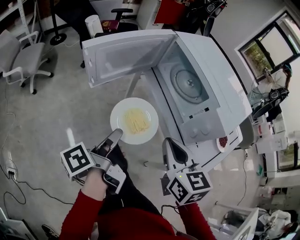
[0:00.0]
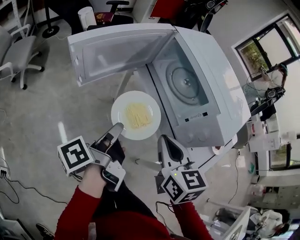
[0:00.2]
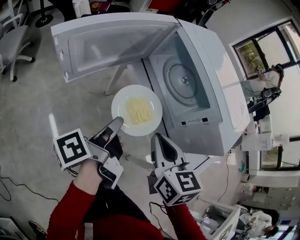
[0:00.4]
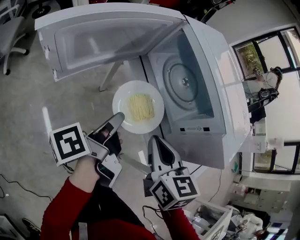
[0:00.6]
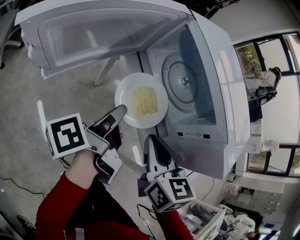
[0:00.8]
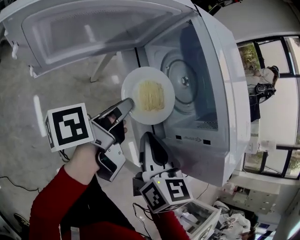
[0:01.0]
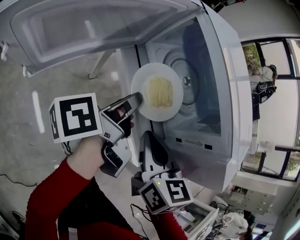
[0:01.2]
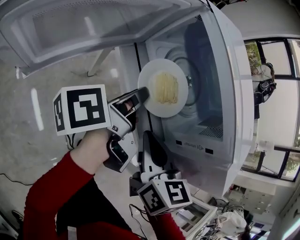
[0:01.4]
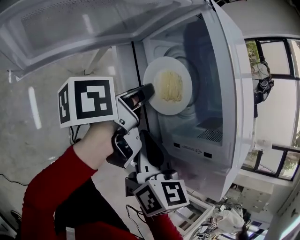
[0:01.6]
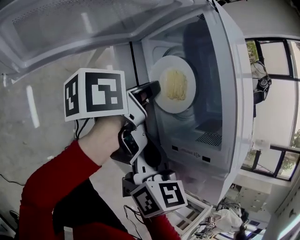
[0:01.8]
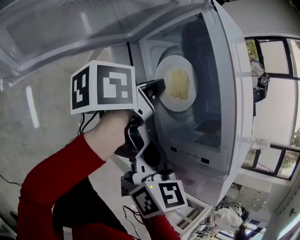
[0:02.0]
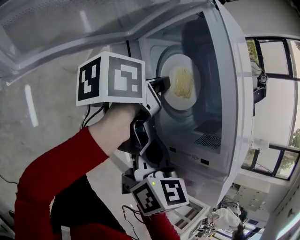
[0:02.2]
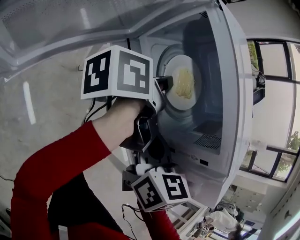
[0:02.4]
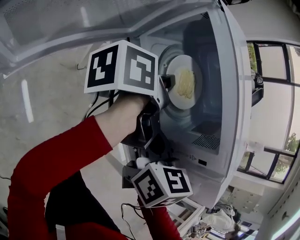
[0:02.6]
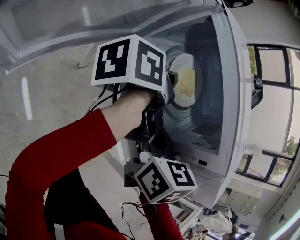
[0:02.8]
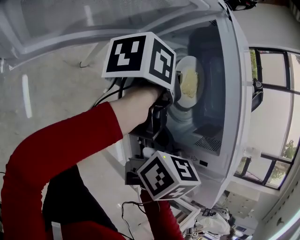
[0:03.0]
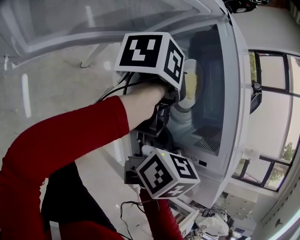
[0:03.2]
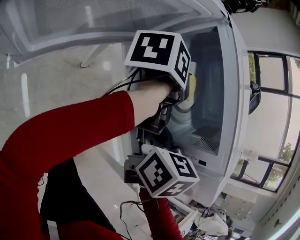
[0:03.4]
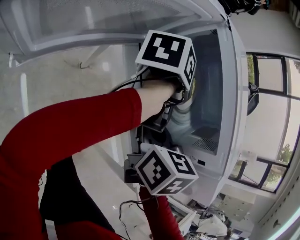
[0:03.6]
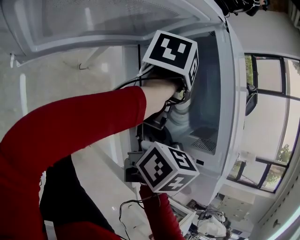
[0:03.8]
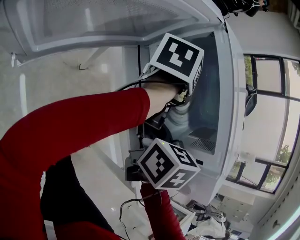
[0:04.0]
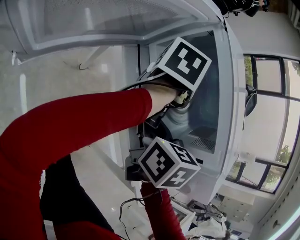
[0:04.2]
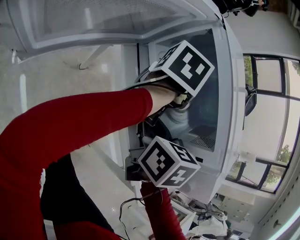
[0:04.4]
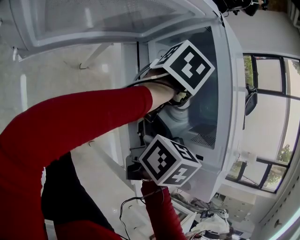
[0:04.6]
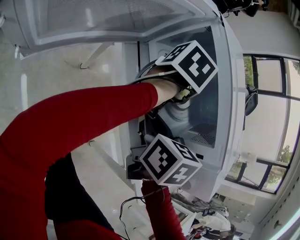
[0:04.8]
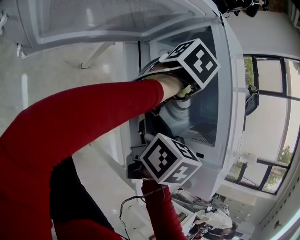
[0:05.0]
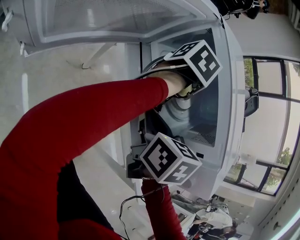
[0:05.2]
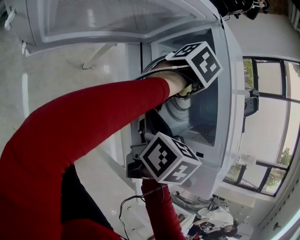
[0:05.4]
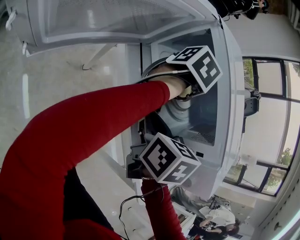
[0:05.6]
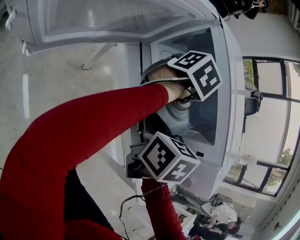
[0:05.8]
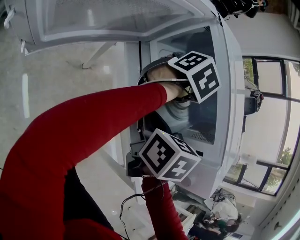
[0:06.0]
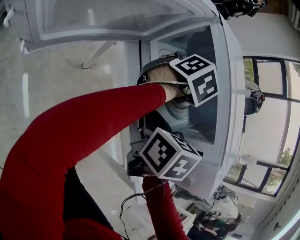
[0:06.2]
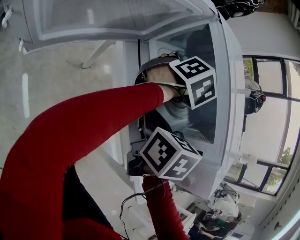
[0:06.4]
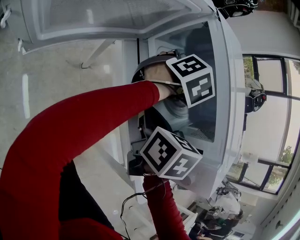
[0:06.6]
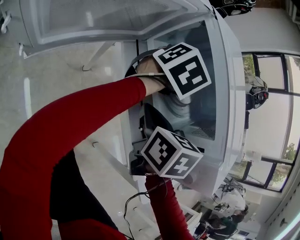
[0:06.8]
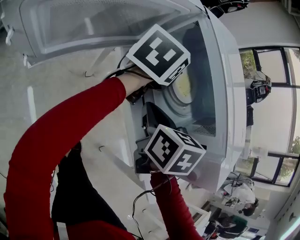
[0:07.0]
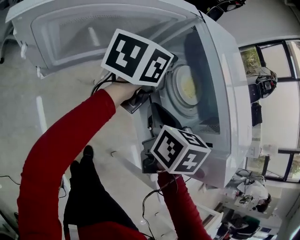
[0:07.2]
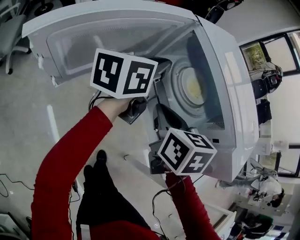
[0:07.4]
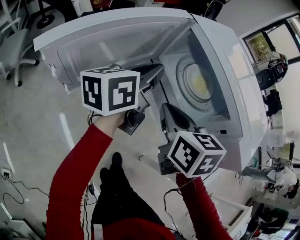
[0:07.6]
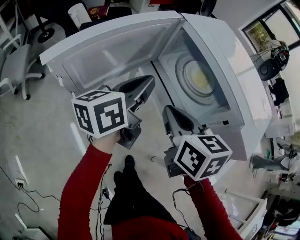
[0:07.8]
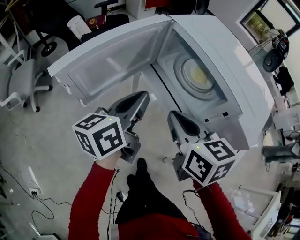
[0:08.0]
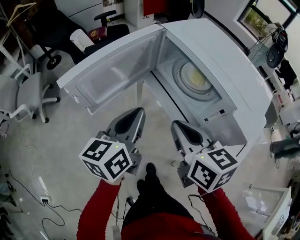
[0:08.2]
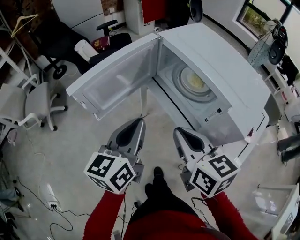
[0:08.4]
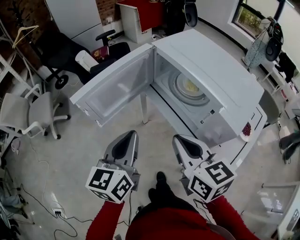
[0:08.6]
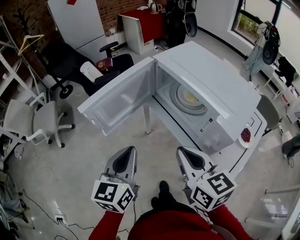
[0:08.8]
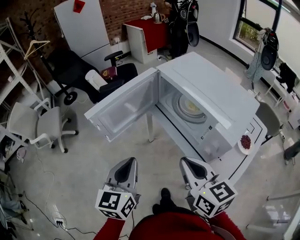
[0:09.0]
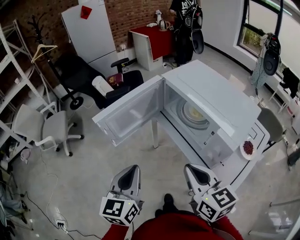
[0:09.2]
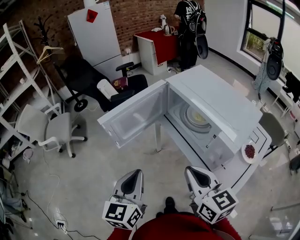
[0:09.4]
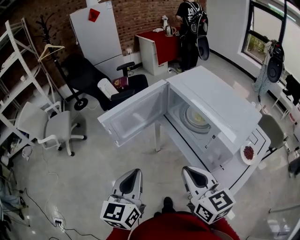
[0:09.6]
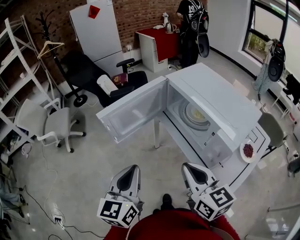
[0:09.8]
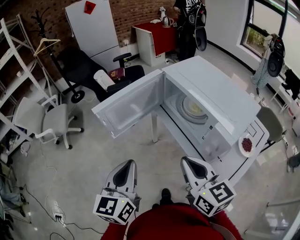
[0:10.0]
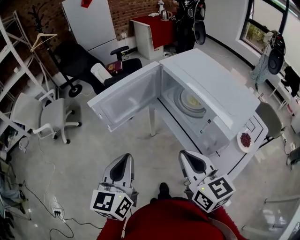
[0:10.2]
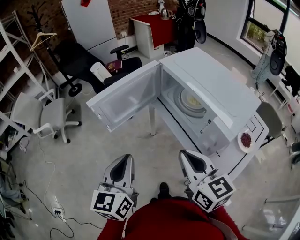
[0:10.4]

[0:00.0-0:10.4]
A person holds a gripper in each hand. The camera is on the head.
0:00.0 to 0:01.4: The left gripper heads forward and to the right, covering approximately 20 cm. Meanwhile the right gripper heads forward and downward, covering some 10 cm.
0:01.4 to 0:03.0: The right gripper changes place by about 5 cm. The left gripper travels forward by approximately 10 cm.
0:03.0 to 0:04.4: The left gripper rotates roughly 40 degrees.
0:04.4 to 0:06.0: The left gripper swivels some 30 degrees.
0:06.0 to 0:07.4: The right gripper shifts by roughly 5 cm. Meanwhile the left gripper goes approximately 15 cm to the left, backward and upward, tips its fingers upward by roughly 30 degrees, and closes its fingers.
0:07.4 to 0:09.0: The left gripper moves backward, about 25 cm, and changes its angle by about 40 degrees, while the right gripper travels backward and upward by roughly 20 cm, and turns by about 30 degrees.
0:09.0 to 0:10.4: There are only small adjustments of the grippers.

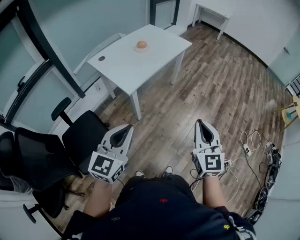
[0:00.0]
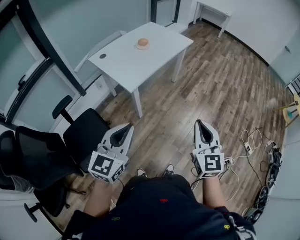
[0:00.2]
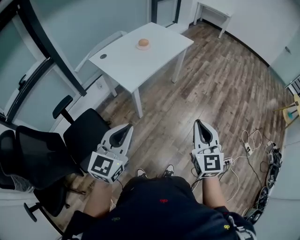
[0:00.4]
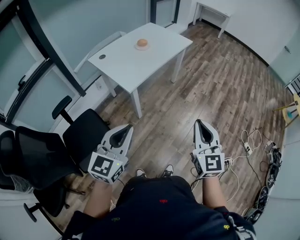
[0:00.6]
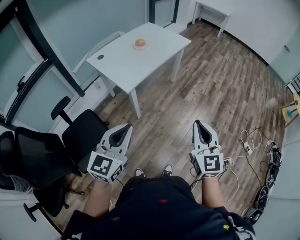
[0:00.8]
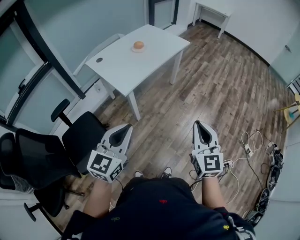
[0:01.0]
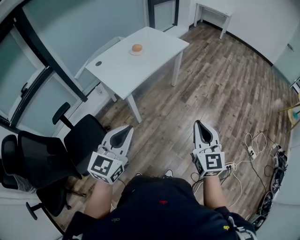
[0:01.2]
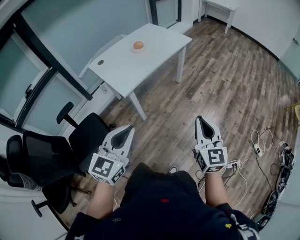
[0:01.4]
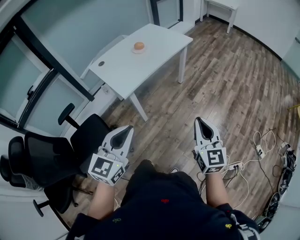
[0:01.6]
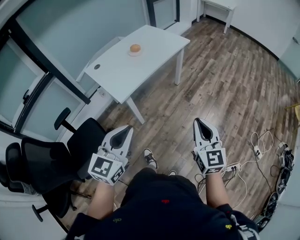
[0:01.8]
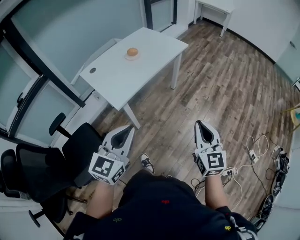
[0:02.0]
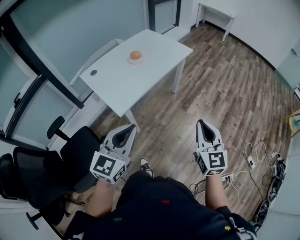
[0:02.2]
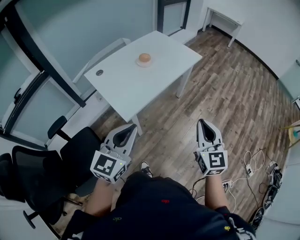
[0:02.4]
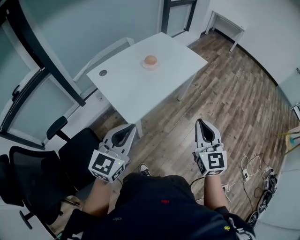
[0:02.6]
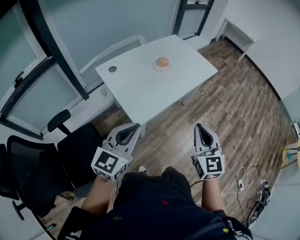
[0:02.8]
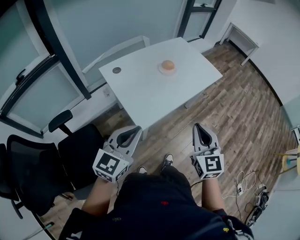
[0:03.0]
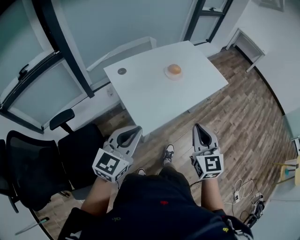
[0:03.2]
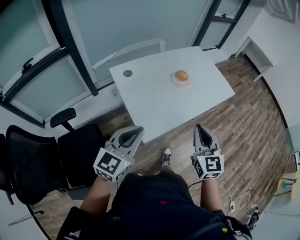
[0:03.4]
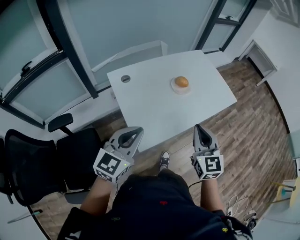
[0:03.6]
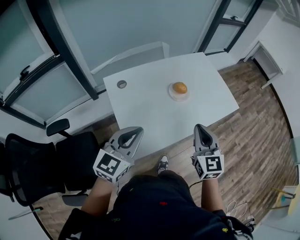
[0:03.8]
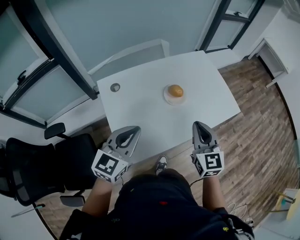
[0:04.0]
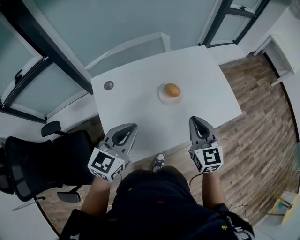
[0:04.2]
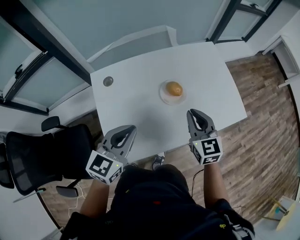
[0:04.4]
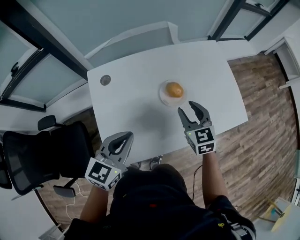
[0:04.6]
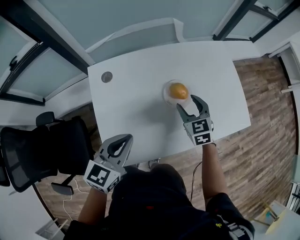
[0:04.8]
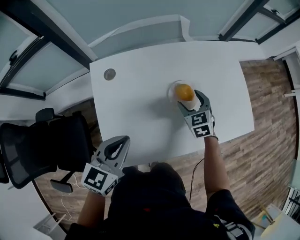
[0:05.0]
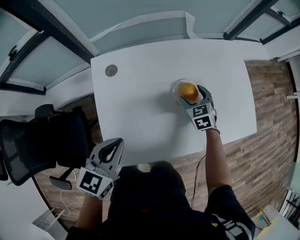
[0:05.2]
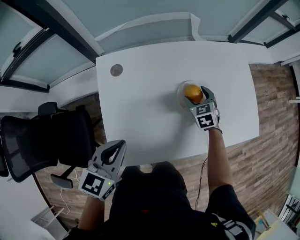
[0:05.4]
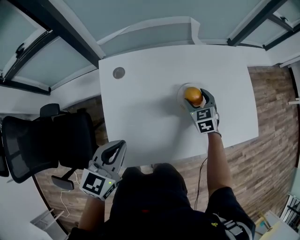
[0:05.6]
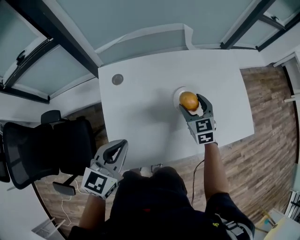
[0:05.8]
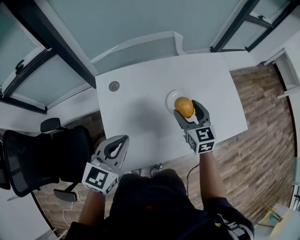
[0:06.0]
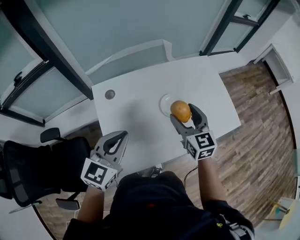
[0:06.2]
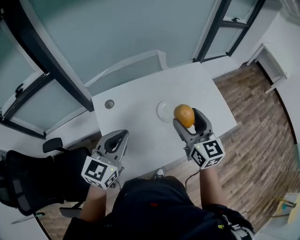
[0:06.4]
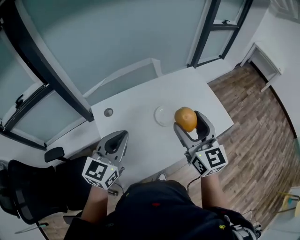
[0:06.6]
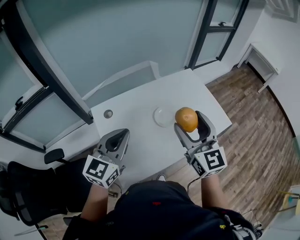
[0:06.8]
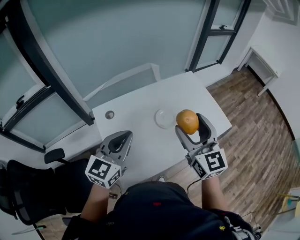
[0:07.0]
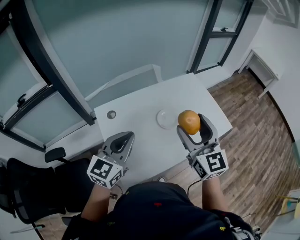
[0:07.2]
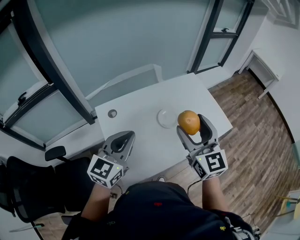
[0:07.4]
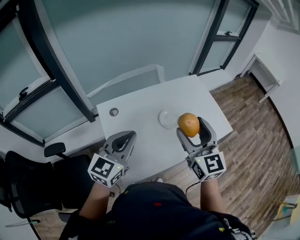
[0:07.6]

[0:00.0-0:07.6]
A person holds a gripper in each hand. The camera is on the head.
0:00.0 to 0:01.6: The two grippers go about 15 cm to the right and forward.
0:01.6 to 0:03.0: The left gripper goes roughly 35 cm forward and to the left. Meanwhile the right gripper travels to the left and forward by some 40 cm.
0:03.0 to 0:04.6: The grippers both shift forward by approximately 50 cm. The left gripper changes its angle by approximately 30 degrees. The right gripper swivels some 30 degrees, and opens its fingers.
0:04.6 to 0:06.0: Both grippers travel together to the left, approximately 5 cm. The right gripper reaches some 15 cm downward, then returns, and opens up.
0:06.0 to 0:07.6: The right gripper travels upward and backward by approximately 25 cm, and turns by about 20 degrees. Meanwhile the left gripper is displaced upward by some 10 cm.

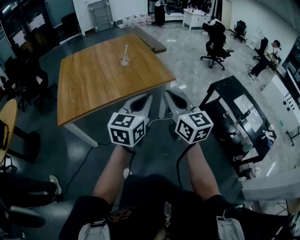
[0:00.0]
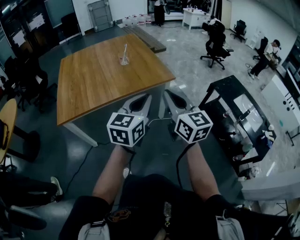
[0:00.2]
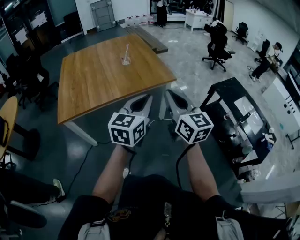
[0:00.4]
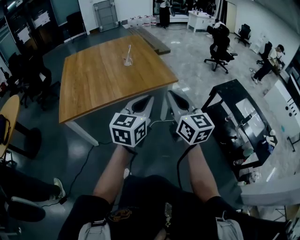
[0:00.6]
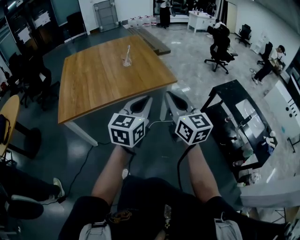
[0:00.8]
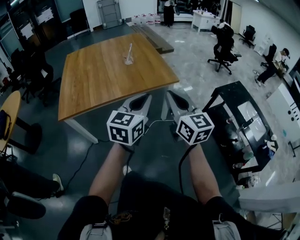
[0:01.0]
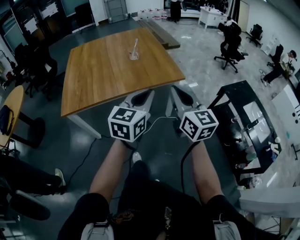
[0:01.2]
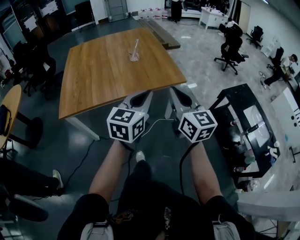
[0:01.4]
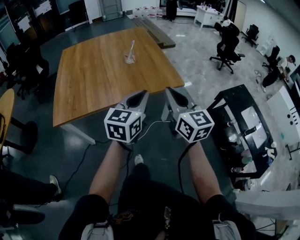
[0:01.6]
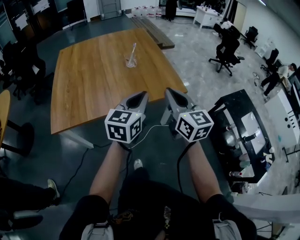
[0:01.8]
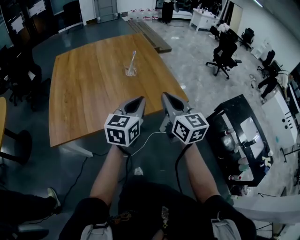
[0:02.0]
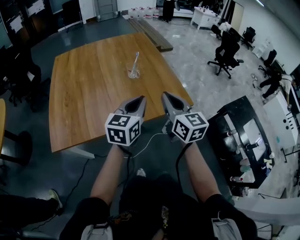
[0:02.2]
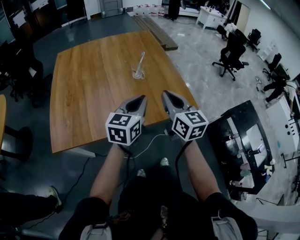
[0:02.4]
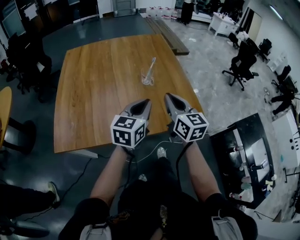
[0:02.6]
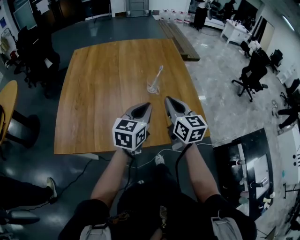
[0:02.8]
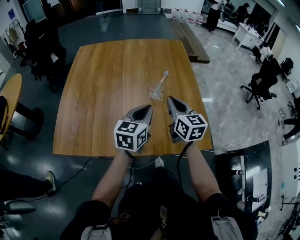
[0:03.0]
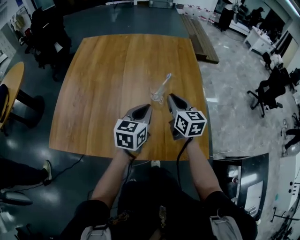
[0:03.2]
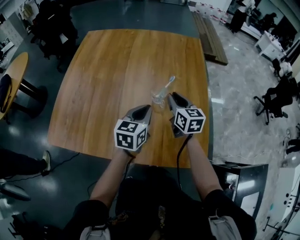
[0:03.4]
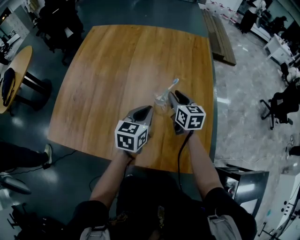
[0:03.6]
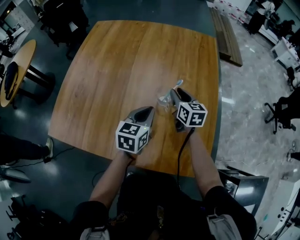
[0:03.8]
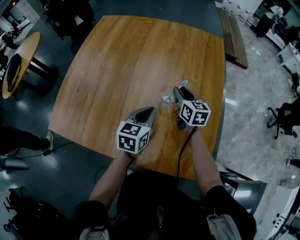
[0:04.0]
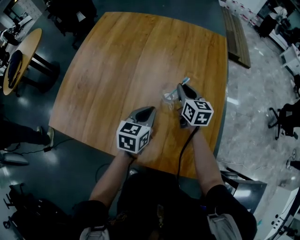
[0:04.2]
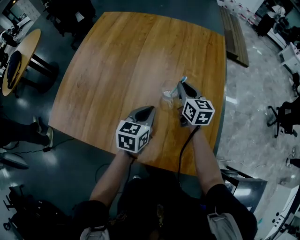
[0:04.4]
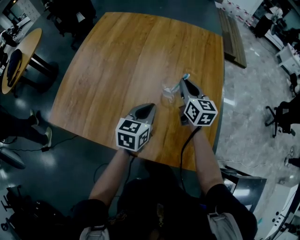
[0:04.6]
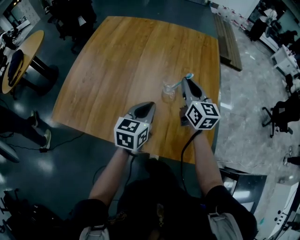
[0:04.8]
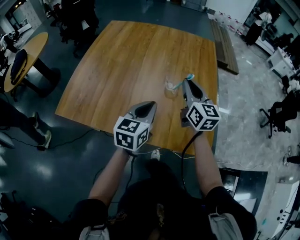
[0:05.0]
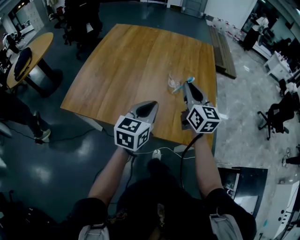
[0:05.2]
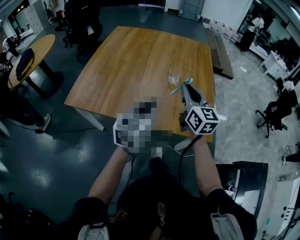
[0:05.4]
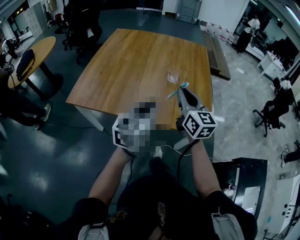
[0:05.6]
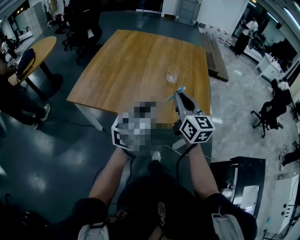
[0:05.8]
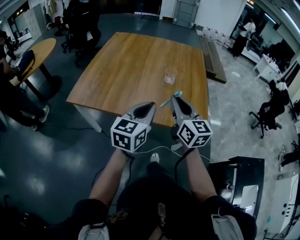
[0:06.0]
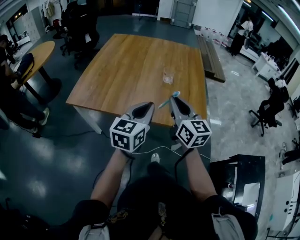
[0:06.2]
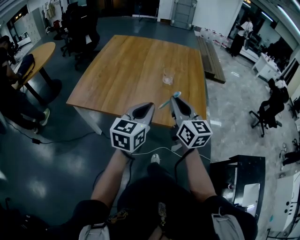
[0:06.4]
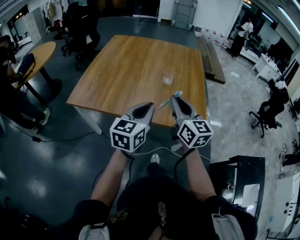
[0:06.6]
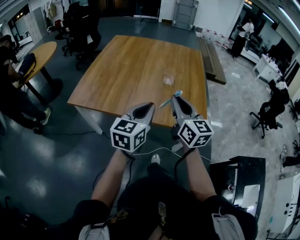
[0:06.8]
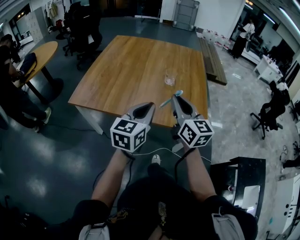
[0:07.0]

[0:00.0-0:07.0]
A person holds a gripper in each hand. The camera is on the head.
0:00.0 to 0:01.4: Both grippers travel together forward, some 10 cm.
0:01.4 to 0:02.8: The grippers both shift forward by about 40 cm.
0:02.8 to 0:04.2: The right gripper travels forward and downward by some 30 cm, and rotates roughly 20 degrees, while the left gripper goes approximately 20 cm forward and downward, and changes its angle by approximately 30 degrees.
0:04.2 to 0:05.6: Both grippers travel together backward and upward, approximately 40 cm. The left gripper turns by approximately 20 degrees; the right gripper turns by some 20 degrees.
0:05.6 to 0:07.0: The left gripper moves about 5 cm. Meanwhile the right gripper travels backward by some 10 cm.
